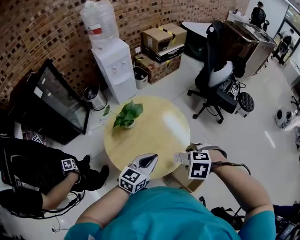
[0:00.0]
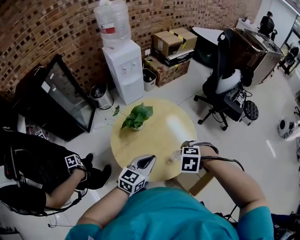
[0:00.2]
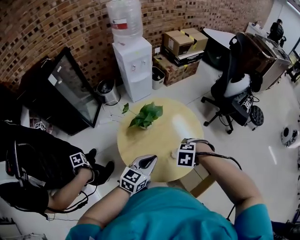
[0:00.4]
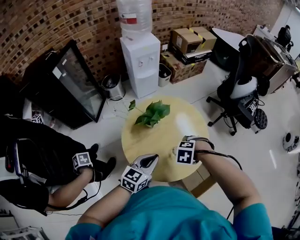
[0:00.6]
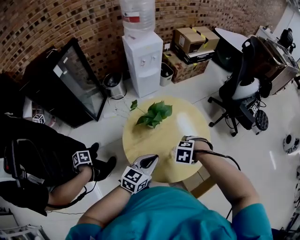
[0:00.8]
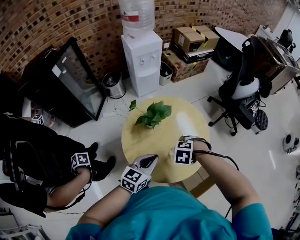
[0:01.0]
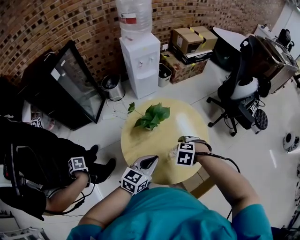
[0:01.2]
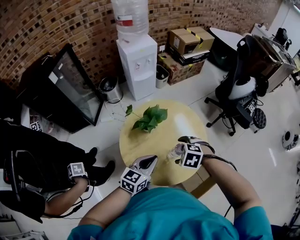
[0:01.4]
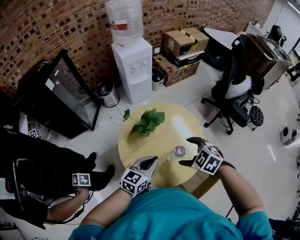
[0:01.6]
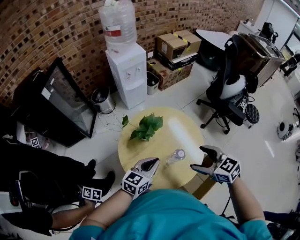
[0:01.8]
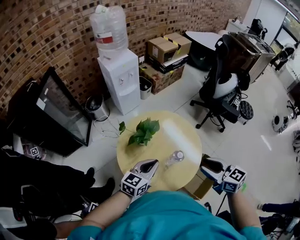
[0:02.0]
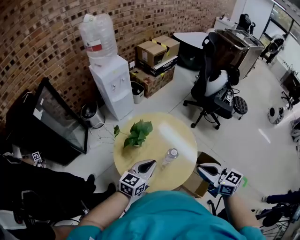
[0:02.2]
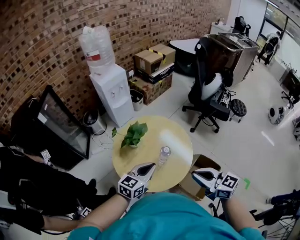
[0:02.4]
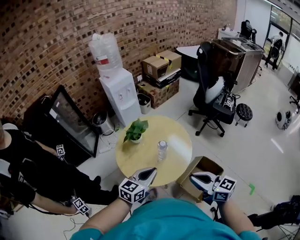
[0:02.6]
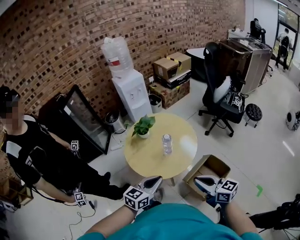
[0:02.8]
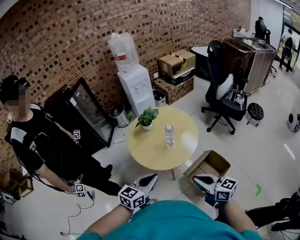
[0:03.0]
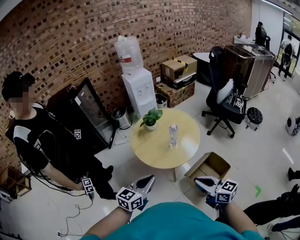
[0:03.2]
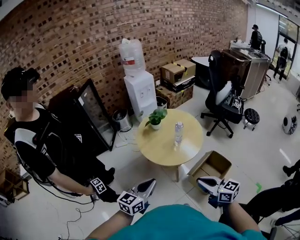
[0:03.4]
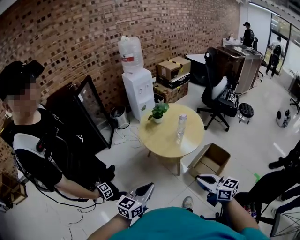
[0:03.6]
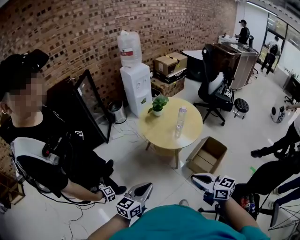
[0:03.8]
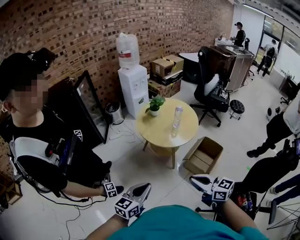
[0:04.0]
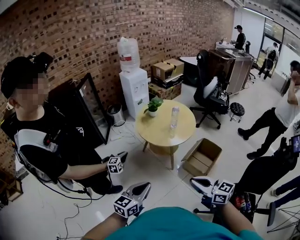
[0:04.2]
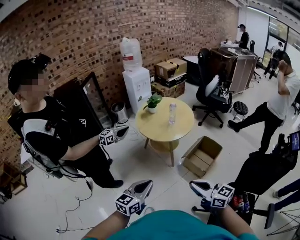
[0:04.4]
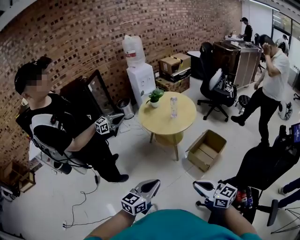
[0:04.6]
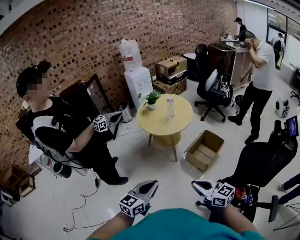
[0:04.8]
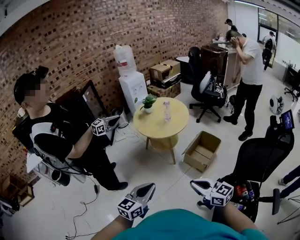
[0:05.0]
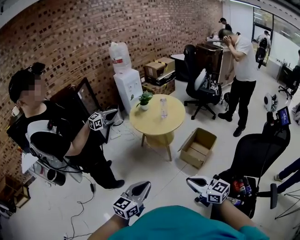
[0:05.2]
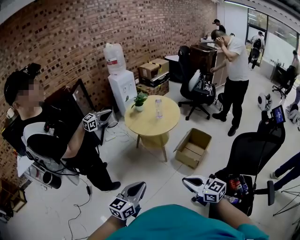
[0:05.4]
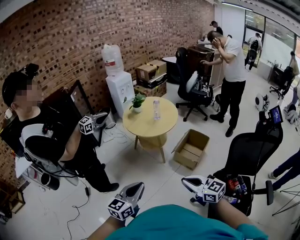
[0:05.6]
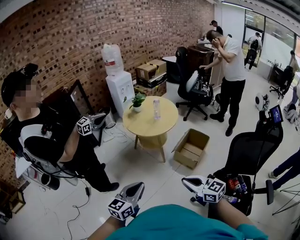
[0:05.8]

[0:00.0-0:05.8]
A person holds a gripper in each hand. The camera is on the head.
0:00.0 to 0:01.4: The left gripper ends up about 15 cm from where it was. The right gripper ends up approximately 20 cm from where it was.
0:01.4 to 0:02.8: Both grippers move backward and upward, some 40 cm. The right gripper tilts its fingers some 70 degrees upward, and closes up.
0:02.8 to 0:04.4: The pair of grippers is taken backward, roughly 60 cm.
0:04.4 to 0:05.8: Both grippers move backward, approximately 10 cm. The left gripper moves about 10 cm to the right and comes back, while the right gripper moves roughly 10 cm to the right and comes back.

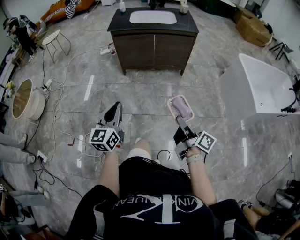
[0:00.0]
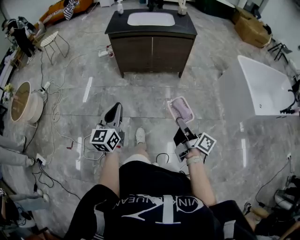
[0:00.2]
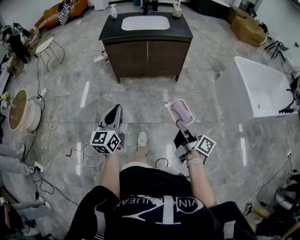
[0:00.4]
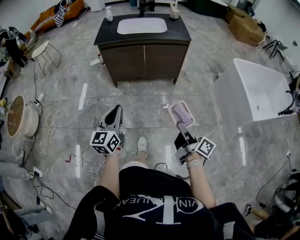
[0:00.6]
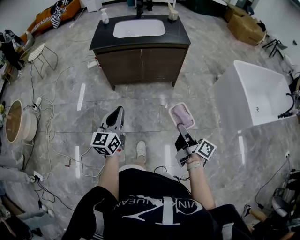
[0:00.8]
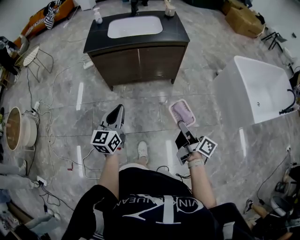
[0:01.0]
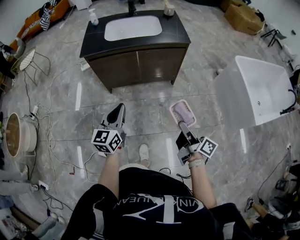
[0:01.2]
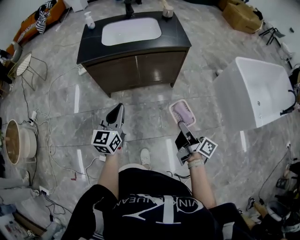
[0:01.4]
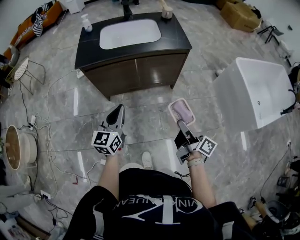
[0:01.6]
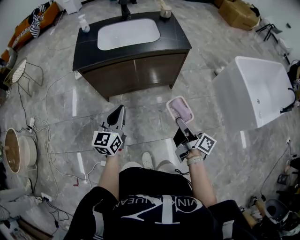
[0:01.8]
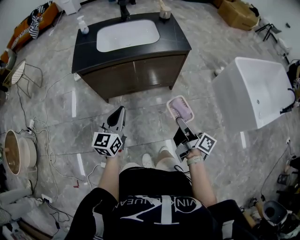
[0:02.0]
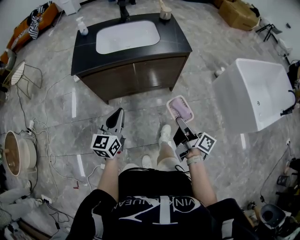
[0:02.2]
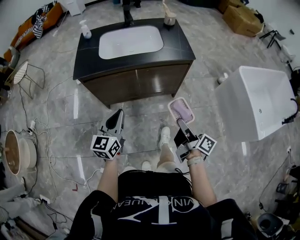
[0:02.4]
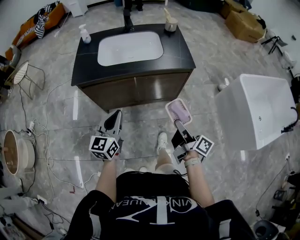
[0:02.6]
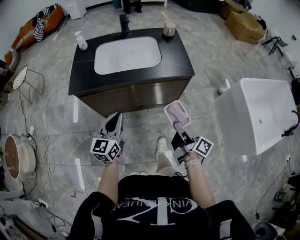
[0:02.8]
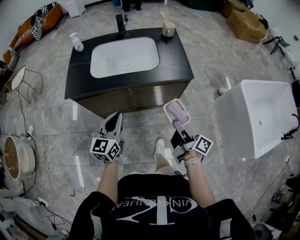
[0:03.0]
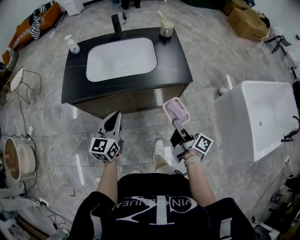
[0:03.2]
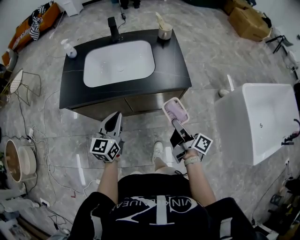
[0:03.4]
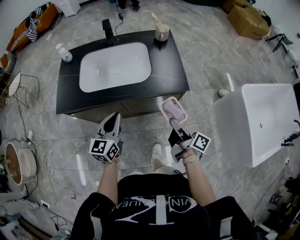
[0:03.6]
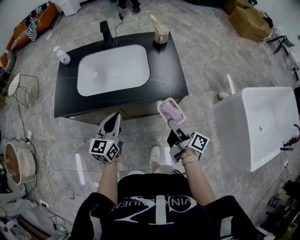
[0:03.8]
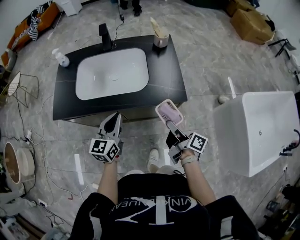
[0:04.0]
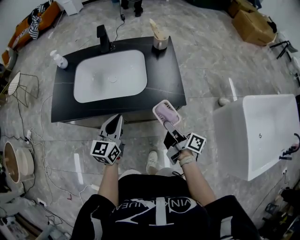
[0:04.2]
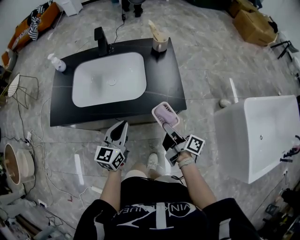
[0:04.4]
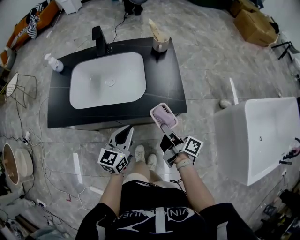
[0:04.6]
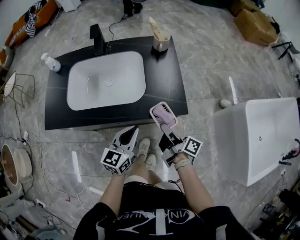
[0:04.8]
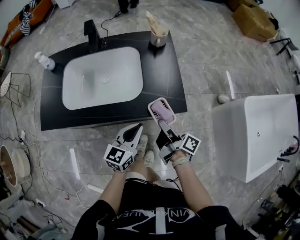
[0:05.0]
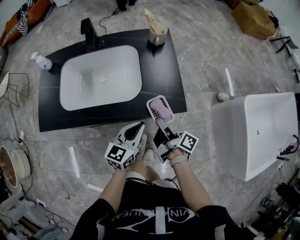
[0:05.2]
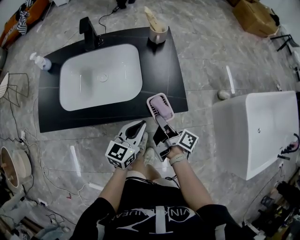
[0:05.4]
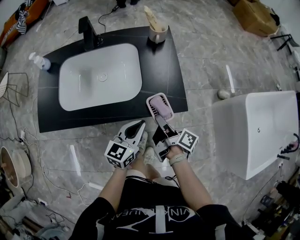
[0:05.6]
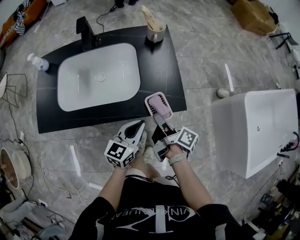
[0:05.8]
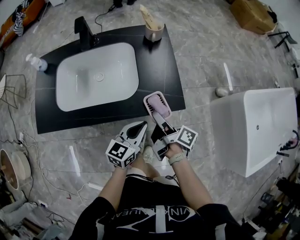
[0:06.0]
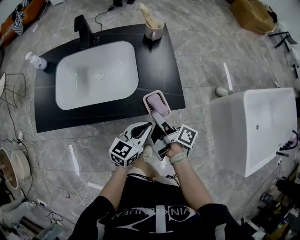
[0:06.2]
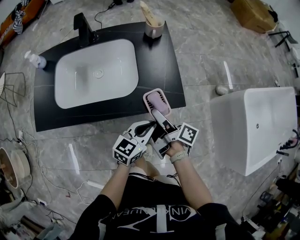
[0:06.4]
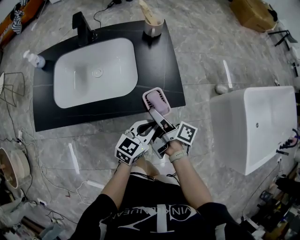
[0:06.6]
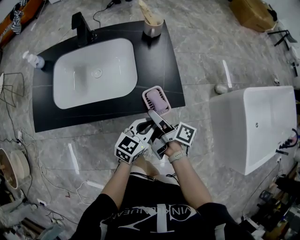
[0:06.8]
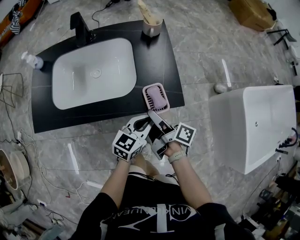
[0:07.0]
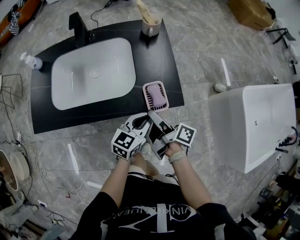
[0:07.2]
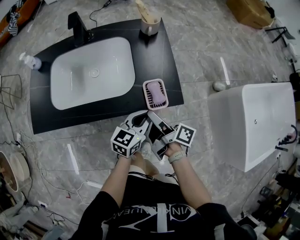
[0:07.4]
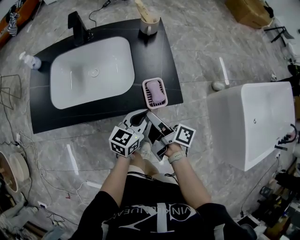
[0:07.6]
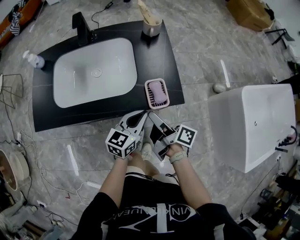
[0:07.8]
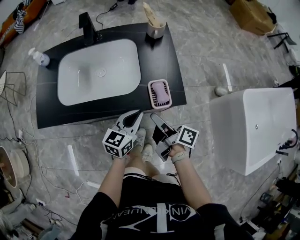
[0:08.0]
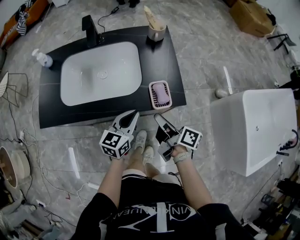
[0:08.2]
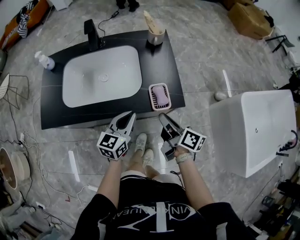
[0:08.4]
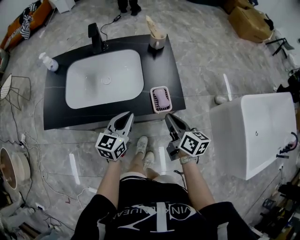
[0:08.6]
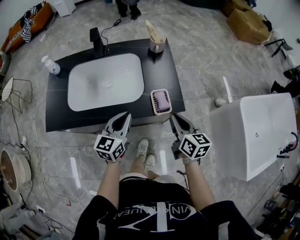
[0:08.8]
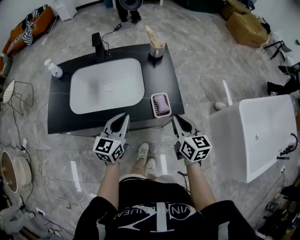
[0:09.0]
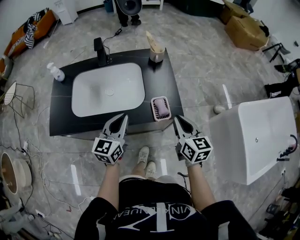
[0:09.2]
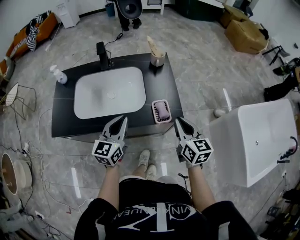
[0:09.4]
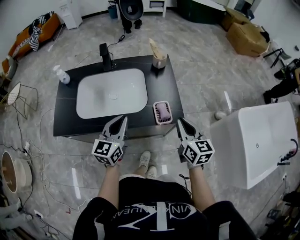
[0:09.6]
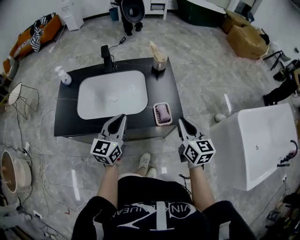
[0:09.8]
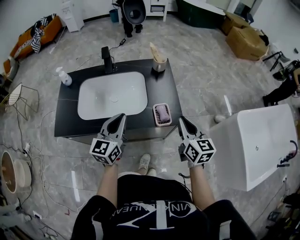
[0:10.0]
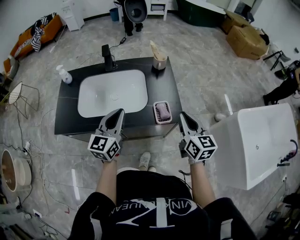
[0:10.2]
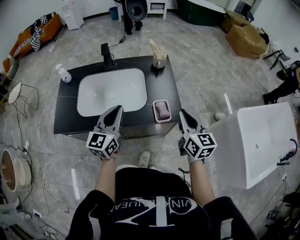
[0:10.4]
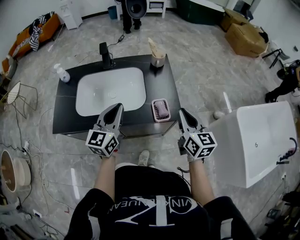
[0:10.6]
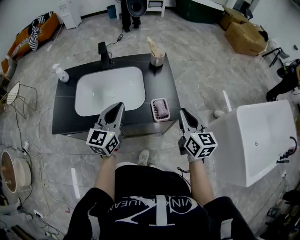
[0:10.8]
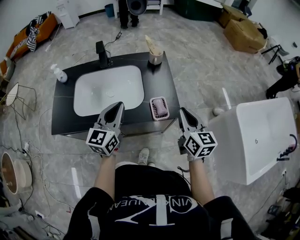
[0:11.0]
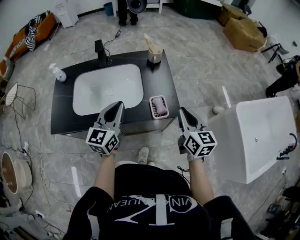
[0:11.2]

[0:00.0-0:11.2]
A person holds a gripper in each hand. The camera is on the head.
0:00.0 to 0:01.6: The two grippers go about 35 cm forward.
0:01.6 to 0:03.2: The two grippers go about 25 cm forward.
0:03.2 to 0:04.8: The left gripper goes roughly 20 cm to the right, forward and downward, while the right gripper moves forward and downward, about 20 cm.
0:04.8 to 0:06.4: The right gripper opens. Meanwhile the left gripper is displaced to the right and downward by roughly 10 cm.
0:06.4 to 0:08.0: The right gripper closes. Meanwhile the left gripper is displaced to the left by some 5 cm.
0:08.0 to 0:09.6: The right gripper moves upward and to the right, some 15 cm, rotates around the line of its fingers by roughly 60 degrees, counterclockwise from behind, and closes, while the left gripper moves upward and to the left, some 15 cm.
0:09.6 to 0:11.2: The grippers stay close to where they were, moving slightly.

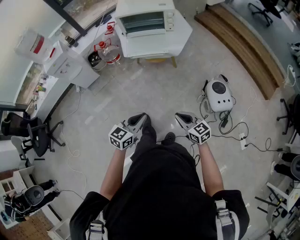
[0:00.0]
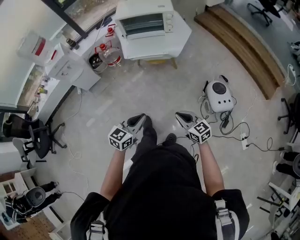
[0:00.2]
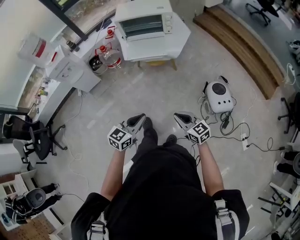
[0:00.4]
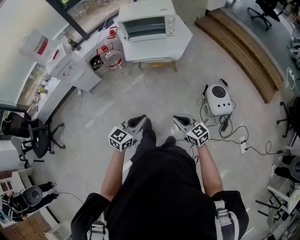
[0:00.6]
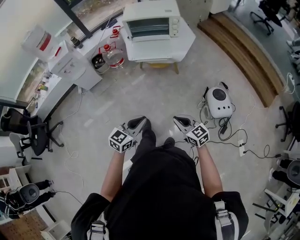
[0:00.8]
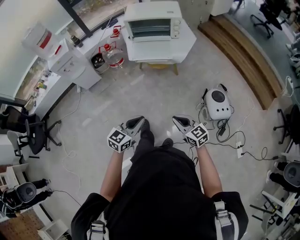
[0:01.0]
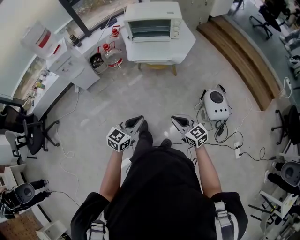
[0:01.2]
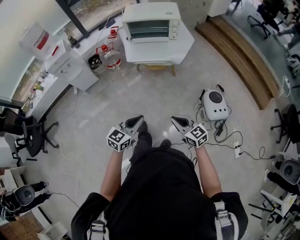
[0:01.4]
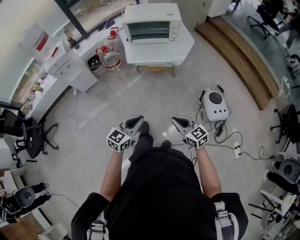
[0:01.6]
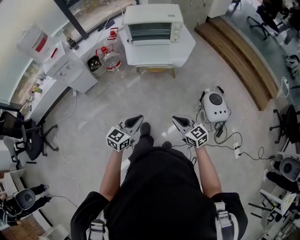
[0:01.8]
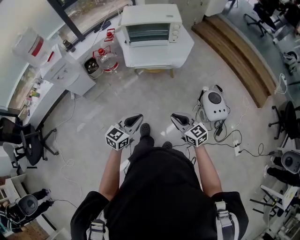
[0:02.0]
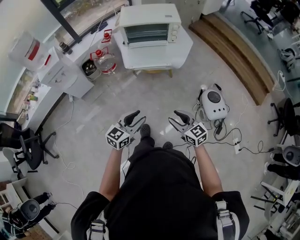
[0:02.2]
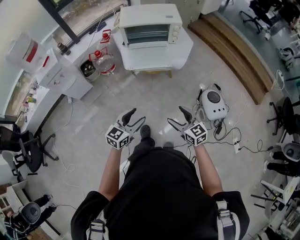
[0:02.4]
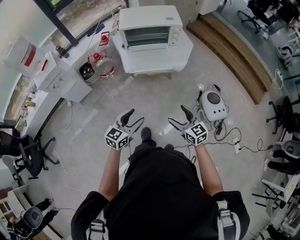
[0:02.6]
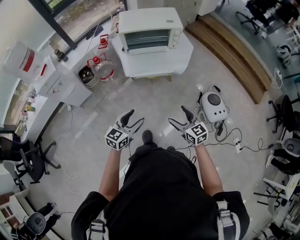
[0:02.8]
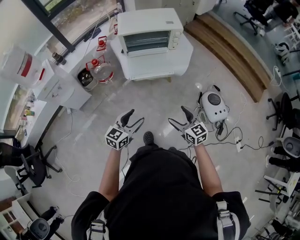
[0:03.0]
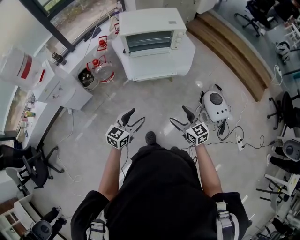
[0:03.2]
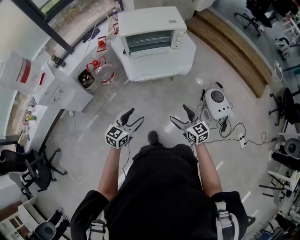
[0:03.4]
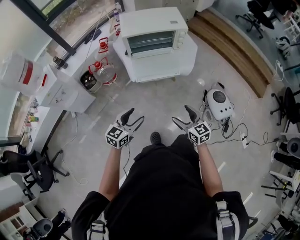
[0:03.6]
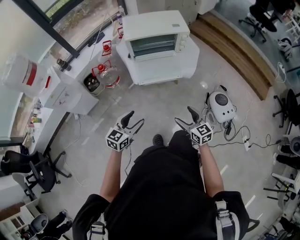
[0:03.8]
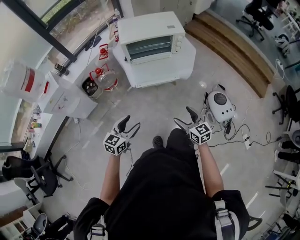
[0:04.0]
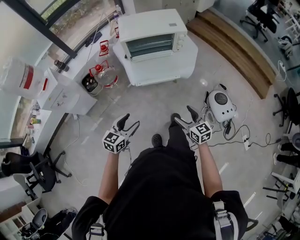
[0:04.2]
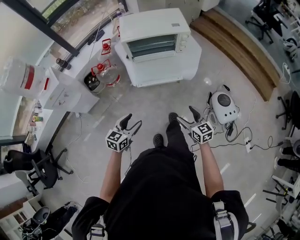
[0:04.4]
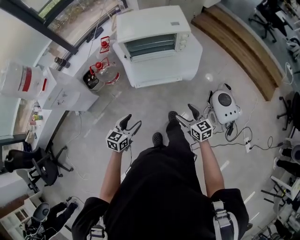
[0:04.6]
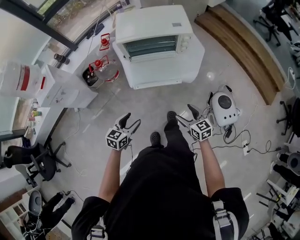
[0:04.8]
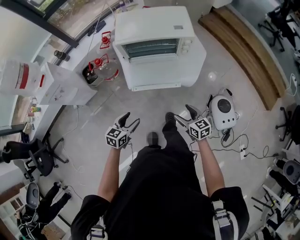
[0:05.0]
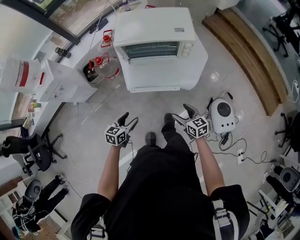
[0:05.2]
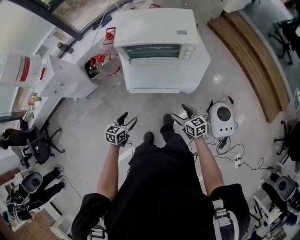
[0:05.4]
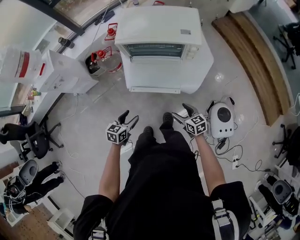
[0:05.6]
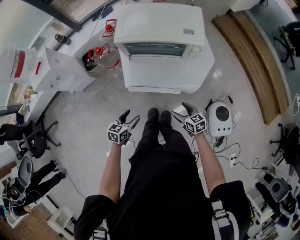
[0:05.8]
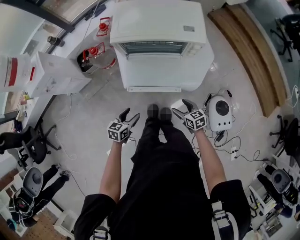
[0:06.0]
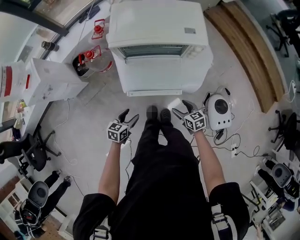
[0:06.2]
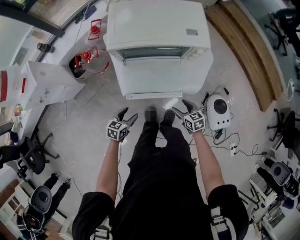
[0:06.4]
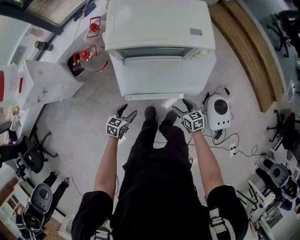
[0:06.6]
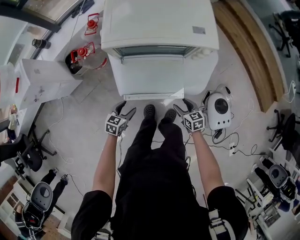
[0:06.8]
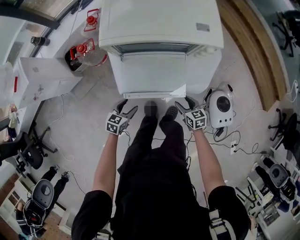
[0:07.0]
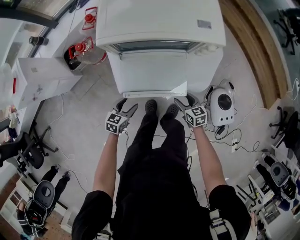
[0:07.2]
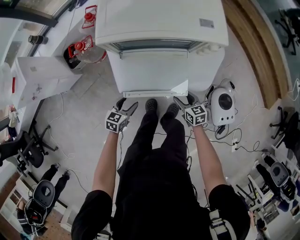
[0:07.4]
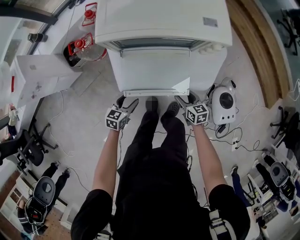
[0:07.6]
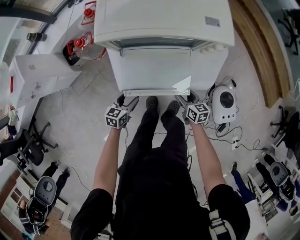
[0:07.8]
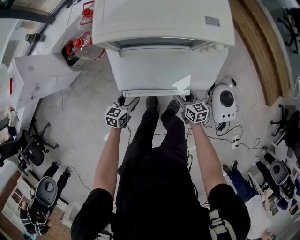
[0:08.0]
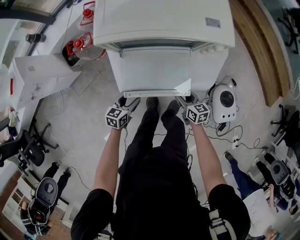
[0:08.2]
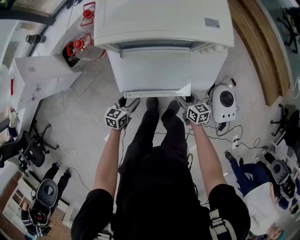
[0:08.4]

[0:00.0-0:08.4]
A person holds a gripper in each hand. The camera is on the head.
0:00.0 to 0:01.4: The right gripper ends up about 5 cm from where it was.
0:01.4 to 0:02.8: The grippers both shift forward and to the left by approximately 20 cm. The right gripper opens up. Meanwhile the left gripper opens its fingers.
0:02.8 to 0:04.2: The left gripper shifts some 10 cm to the left and forward. Meanwhile the right gripper heads forward, covering some 10 cm.
0:04.2 to 0:05.6: Both grippers move forward, downward and to the right, some 25 cm. The right gripper rotates roughly 30 degrees; the left gripper swivels approximately 30 degrees.
0:05.6 to 0:07.0: Both grippers move downward and forward, roughly 20 cm.
0:07.0 to 0:08.4: The grippers stay close to where they were, moving slightly.
